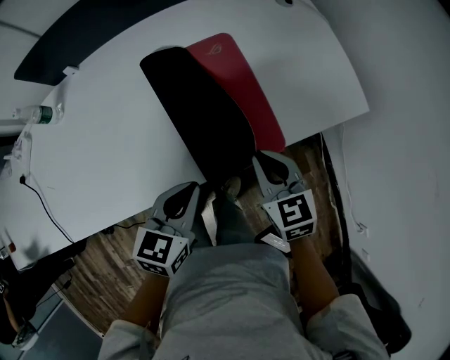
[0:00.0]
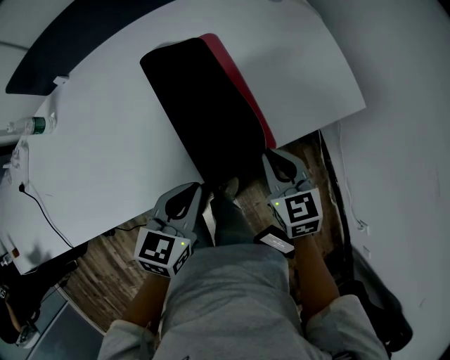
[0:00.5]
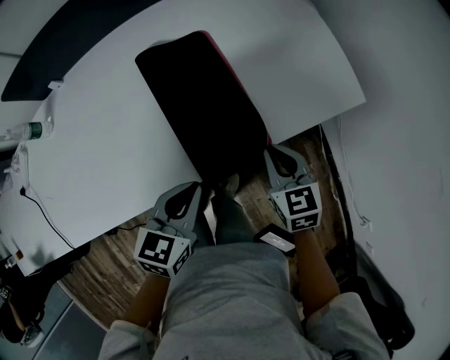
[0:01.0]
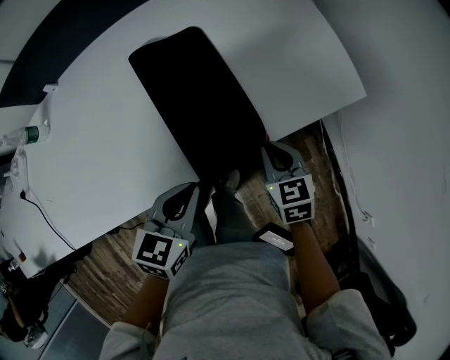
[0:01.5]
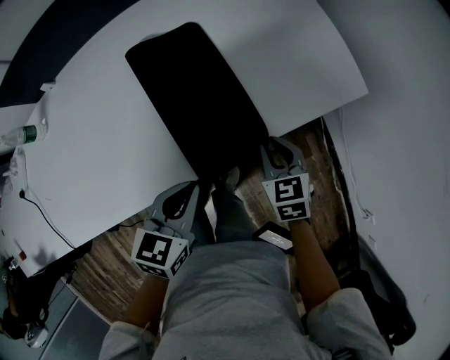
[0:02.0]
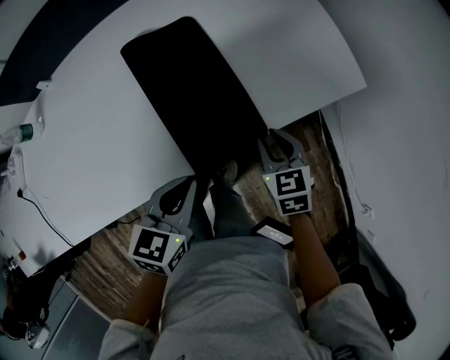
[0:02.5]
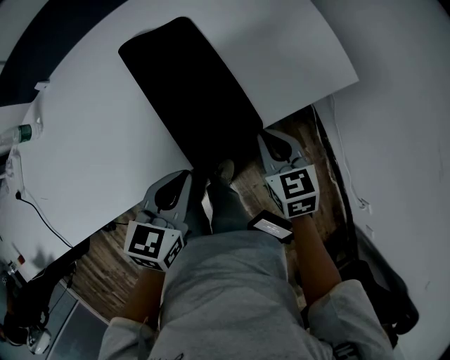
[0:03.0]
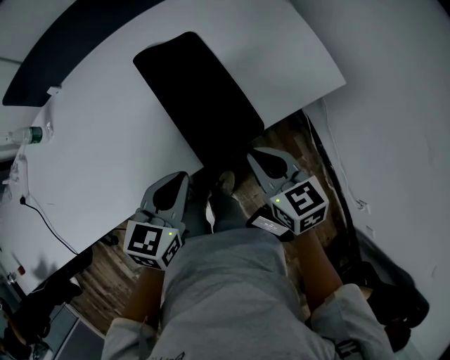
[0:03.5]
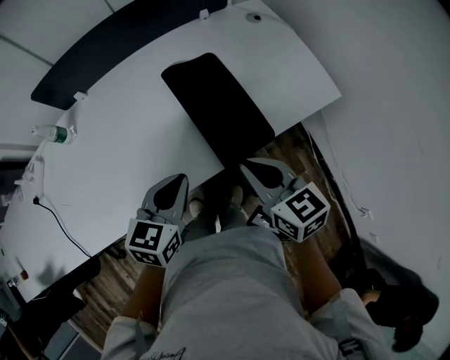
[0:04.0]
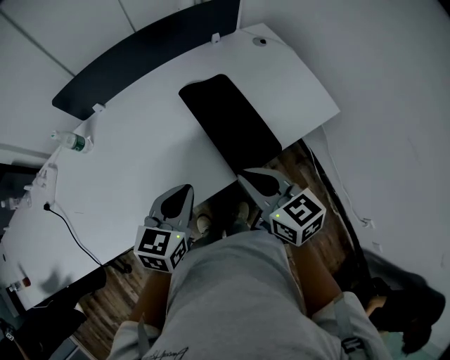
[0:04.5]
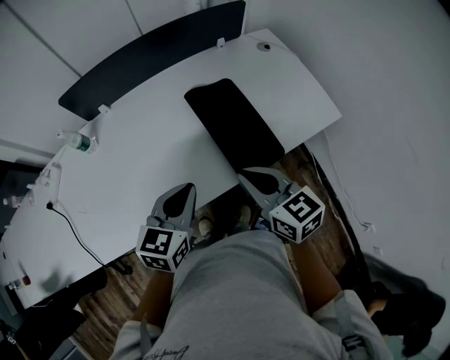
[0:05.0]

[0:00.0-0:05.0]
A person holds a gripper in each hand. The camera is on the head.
0:00.0 to 0:02.5: The left gripper travels to the right by approximately 5 cm. Meanwhile the right gripper moves to the right and downward, approximately 15 cm, and opens up.
0:02.5 to 0:05.0: The right gripper heads upward and to the left, covering approximately 30 cm, rotates roughly 30 degrees, and closes up. The left gripper heads to the left and upward, covering about 20 cm.

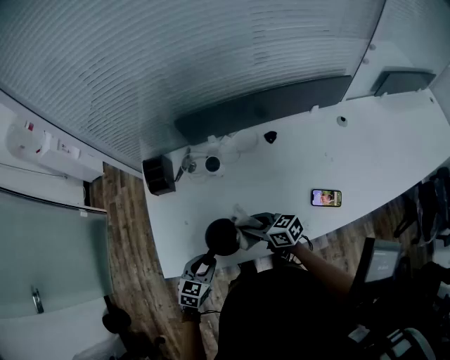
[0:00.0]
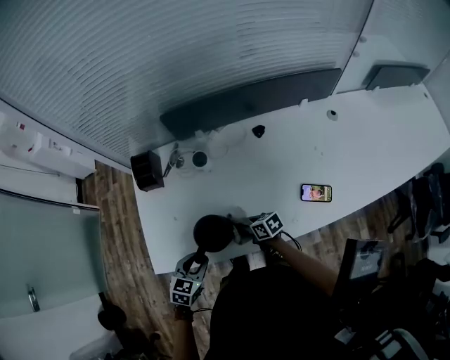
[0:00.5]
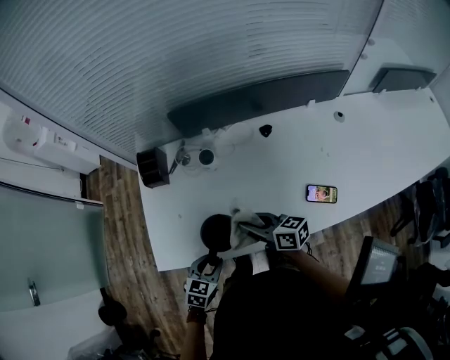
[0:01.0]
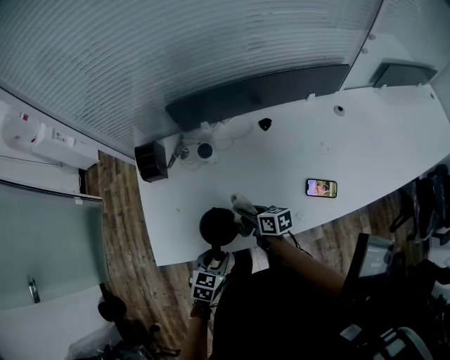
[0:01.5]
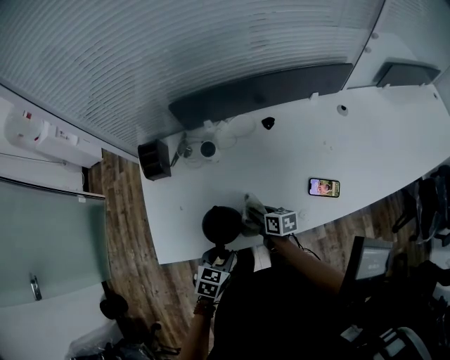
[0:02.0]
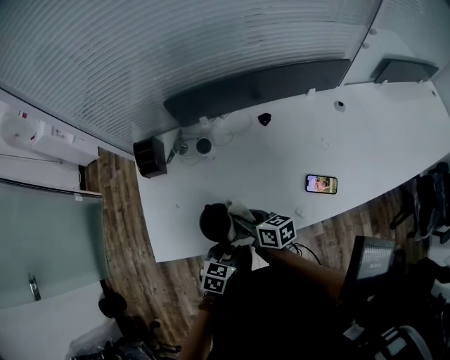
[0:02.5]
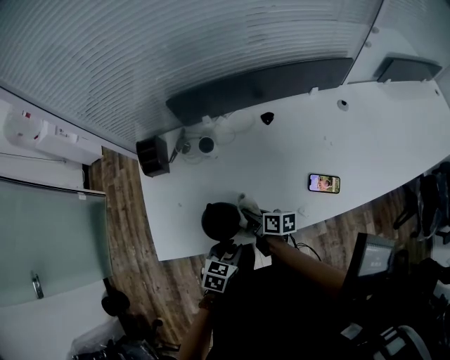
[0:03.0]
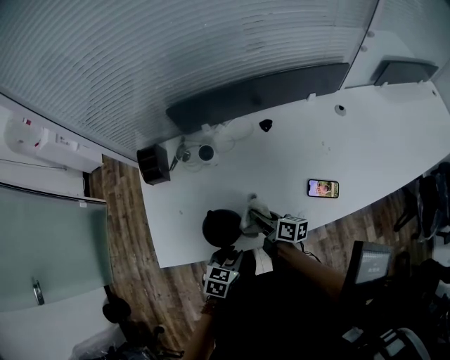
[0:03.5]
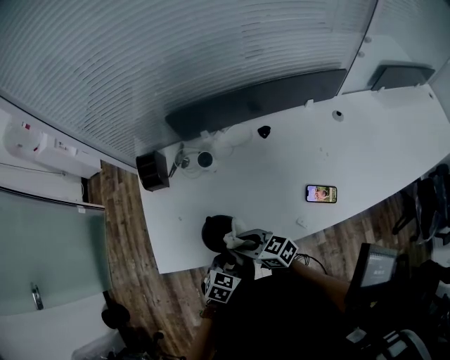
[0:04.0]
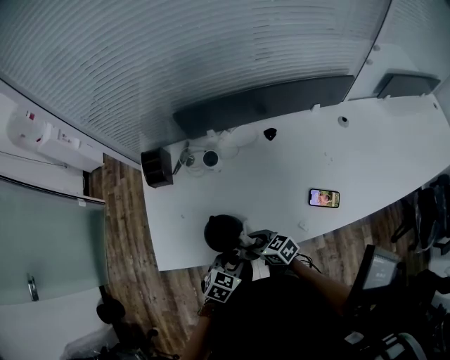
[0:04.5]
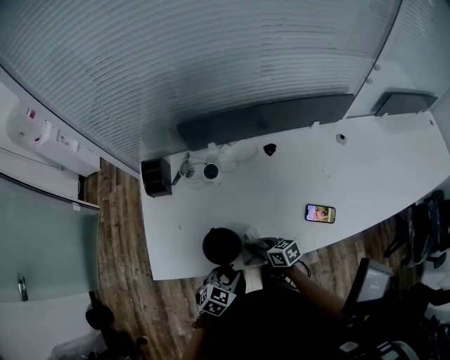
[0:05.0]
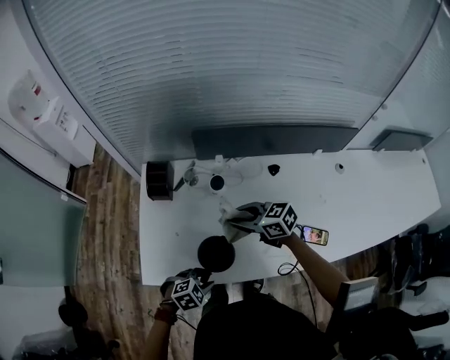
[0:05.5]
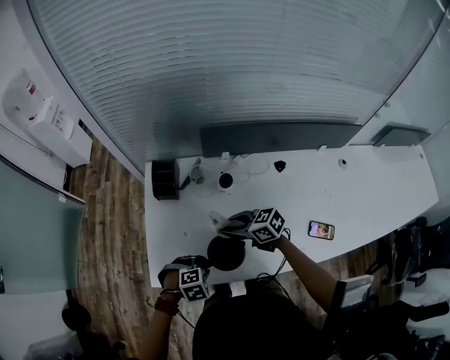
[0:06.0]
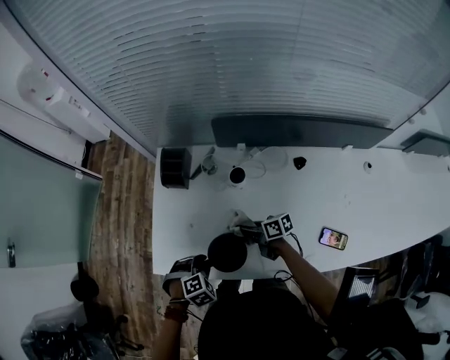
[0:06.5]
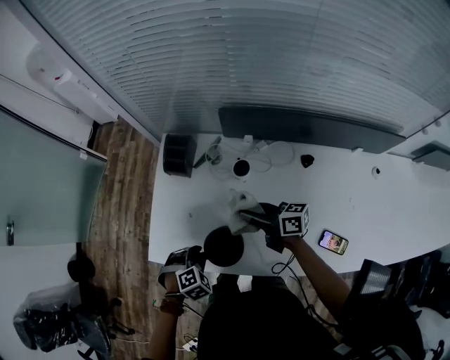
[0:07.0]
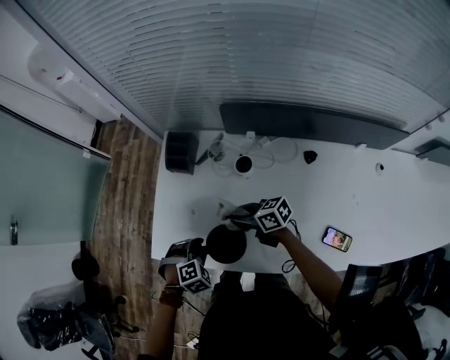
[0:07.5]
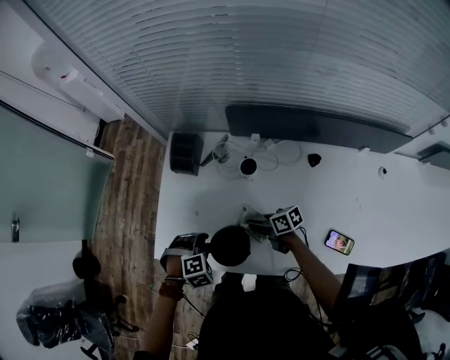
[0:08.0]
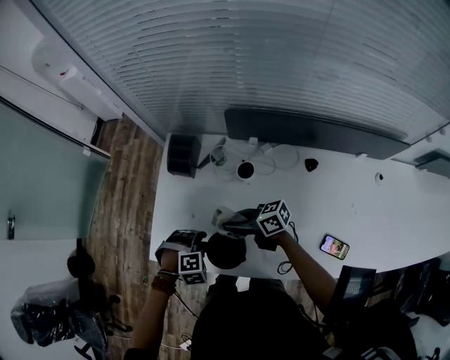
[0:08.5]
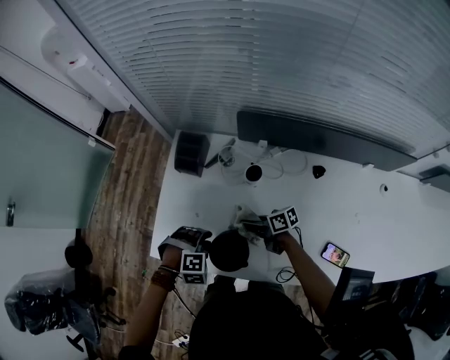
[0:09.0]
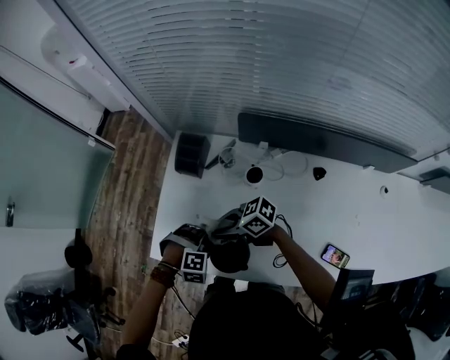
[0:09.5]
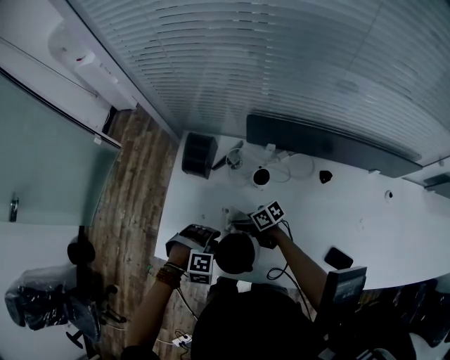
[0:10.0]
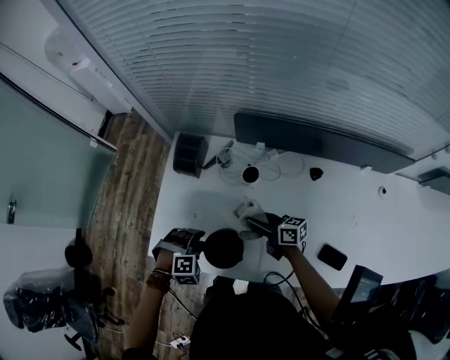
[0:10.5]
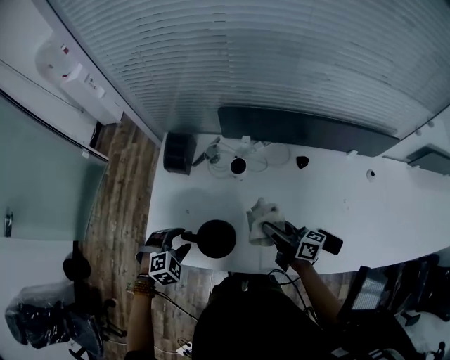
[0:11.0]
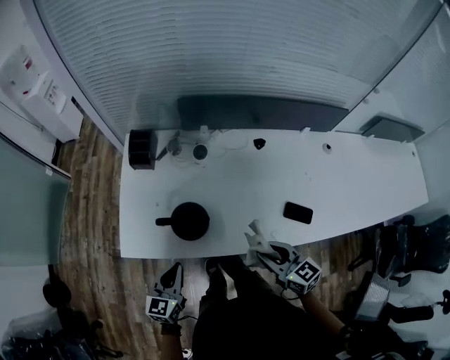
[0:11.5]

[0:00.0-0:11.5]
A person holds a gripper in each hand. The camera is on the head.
0:00.0 to 0:02.0: The left gripper travels to the right by some 5 cm. The right gripper goes up and down, some 20 cm each way, reversing 2 times, and swivels some 30 degrees.
0:02.0 to 0:04.0: The right gripper swings up and down, roughly 10 cm each way, with 2 reversals, and changes its angle by some 40 degrees.
0:04.0 to 0:06.0: The left gripper shifts by some 15 cm, and changes its angle by about 40 degrees; the right gripper goes up and down, roughly 20 cm each way, reversing 2 times.
0:06.0 to 0:07.5: The right gripper swings up and down, about 10 cm each way, with 2 reversals. The left gripper swivels roughly 30 degrees.
0:07.5 to 0:09.5: The right gripper swings up and down, about 10 cm each way, with 3 reversals, and swivels some 30 degrees. The left gripper rotates approximately 30 degrees.
0:09.5 to 0:11.5: The right gripper moves about 15 cm downward and comes back, and changes its angle by about 70 degrees. The left gripper moves roughly 20 cm, angles its fingers upward, by some 50 degrees, and closes its fingers.

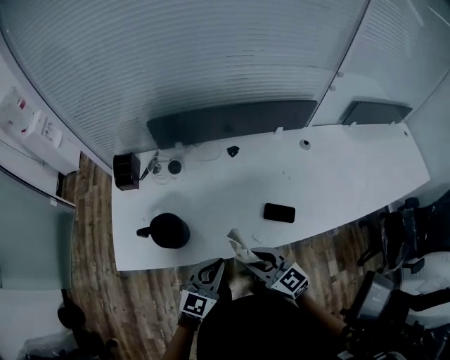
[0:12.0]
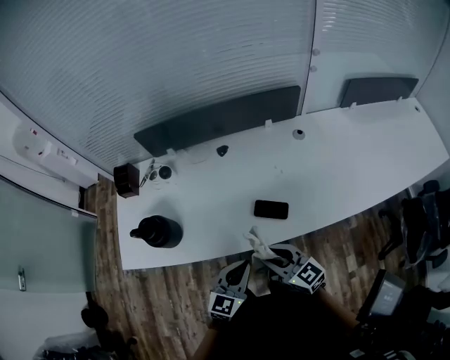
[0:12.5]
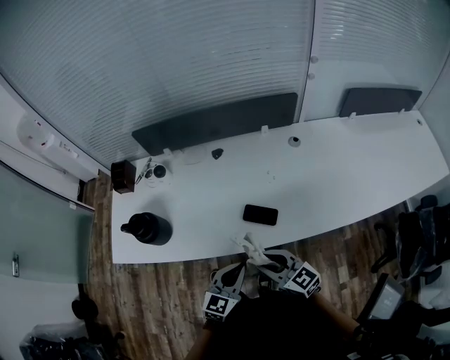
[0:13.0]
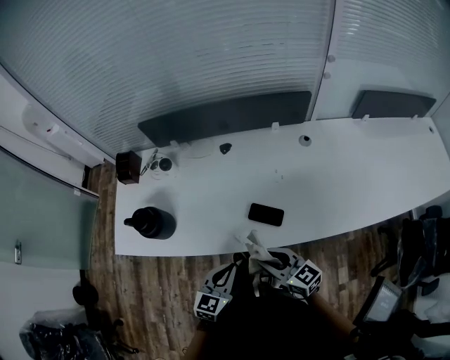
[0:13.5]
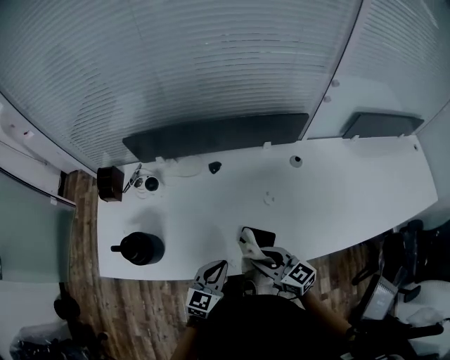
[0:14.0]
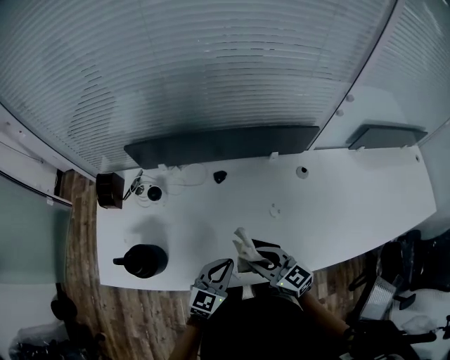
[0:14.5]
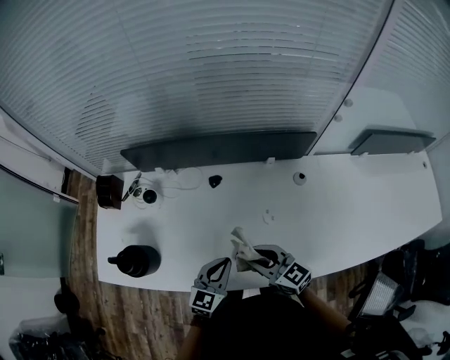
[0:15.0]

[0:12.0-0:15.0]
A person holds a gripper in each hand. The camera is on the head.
0:12.0 to 0:13.5: The two grippers go about 15 cm to the right.
0:13.5 to 0:15.0: The grippers both shift forward by roughly 20 cm.

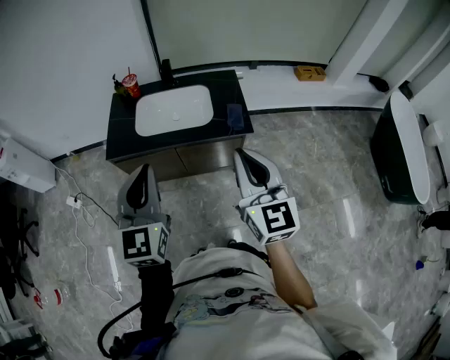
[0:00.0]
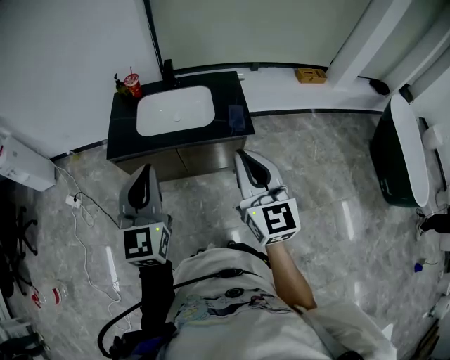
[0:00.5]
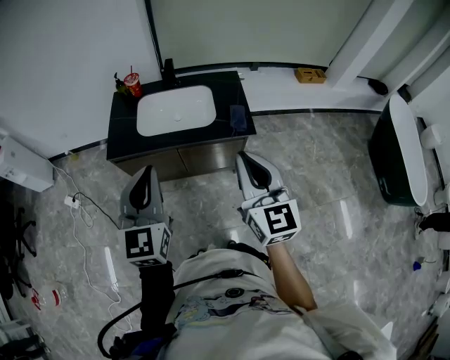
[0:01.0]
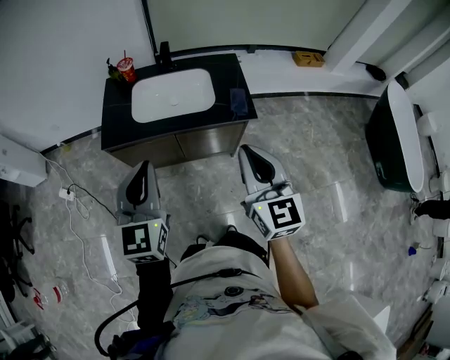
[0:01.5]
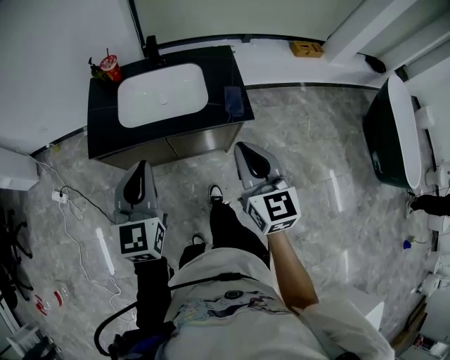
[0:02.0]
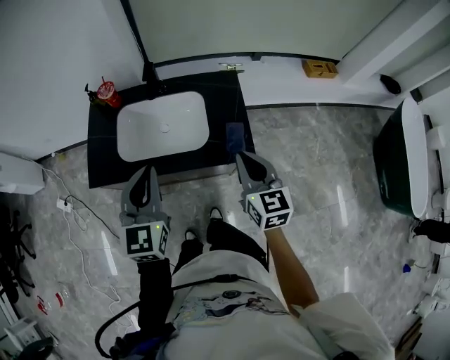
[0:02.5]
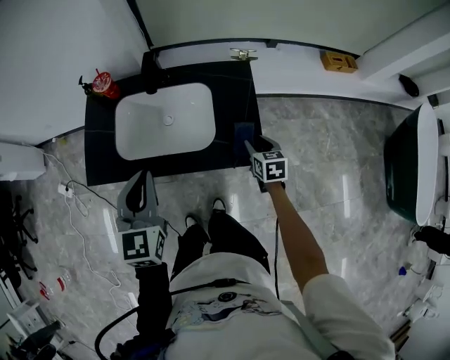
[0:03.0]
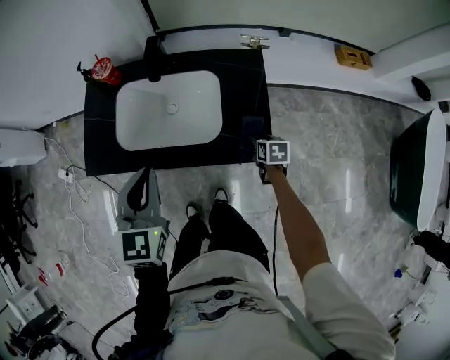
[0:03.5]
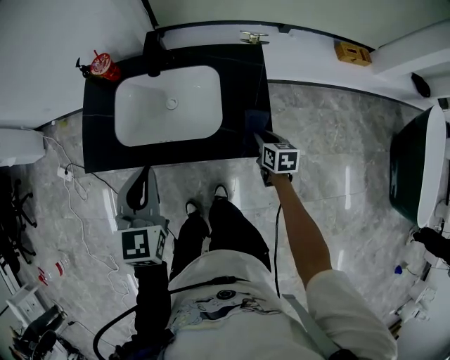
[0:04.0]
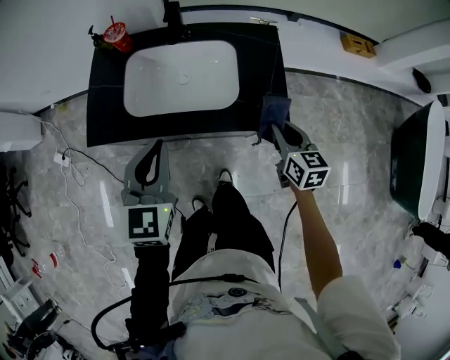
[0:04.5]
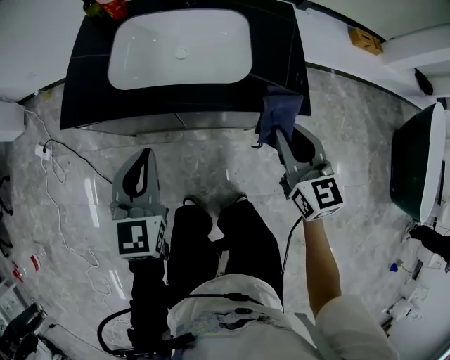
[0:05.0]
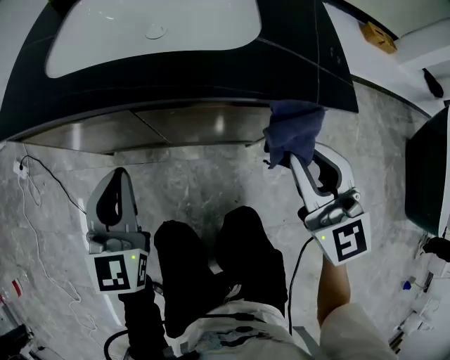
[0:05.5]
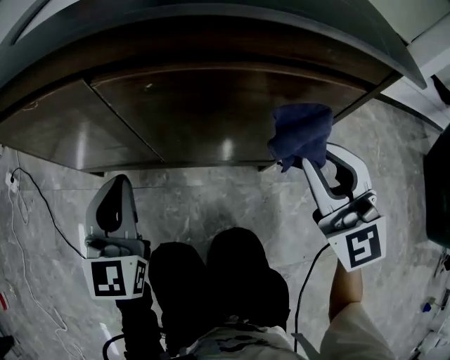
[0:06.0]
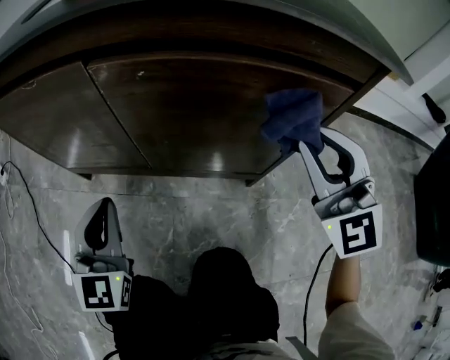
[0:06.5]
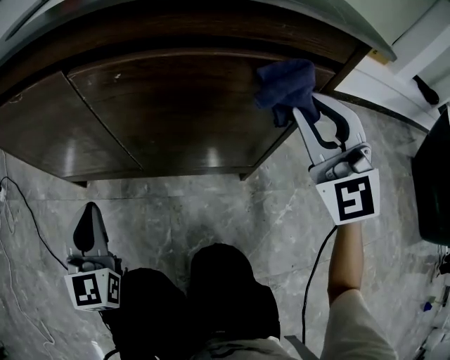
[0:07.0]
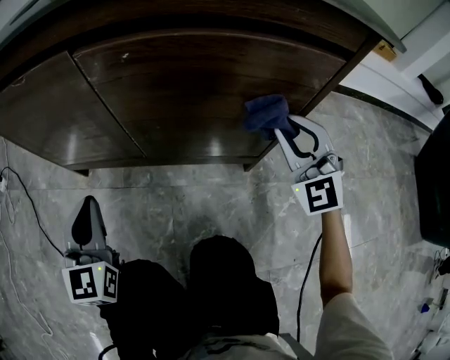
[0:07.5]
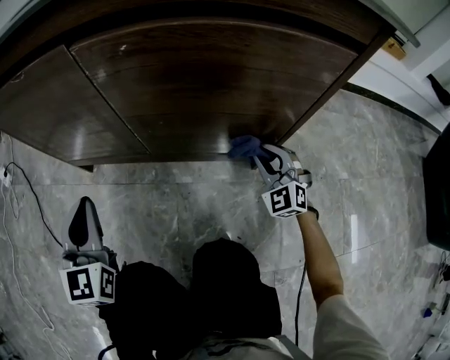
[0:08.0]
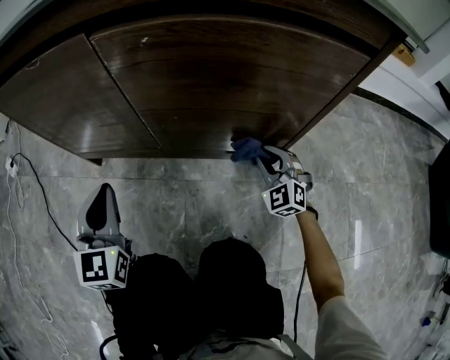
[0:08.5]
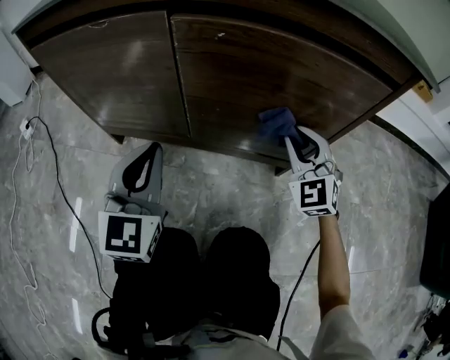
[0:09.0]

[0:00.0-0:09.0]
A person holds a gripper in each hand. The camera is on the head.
0:00.0 to 0:02.0: Both grippers travel together downward and forward, some 15 cm.
0:02.0 to 0:04.5: The left gripper heads forward and downward, covering roughly 15 cm; the right gripper goes some 30 cm downward, forward and to the right, rotates about 20 degrees, and opens, then closes once more.
0:04.5 to 0:07.0: The right gripper moves downward, about 25 cm, and rolls counterclockwise, seen from behind, by roughly 60 degrees, while the left gripper travels downward by roughly 50 cm.
0:07.0 to 0:09.0: The right gripper is displaced downward by approximately 20 cm.
